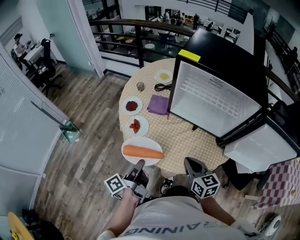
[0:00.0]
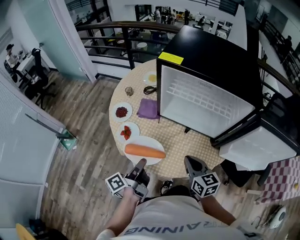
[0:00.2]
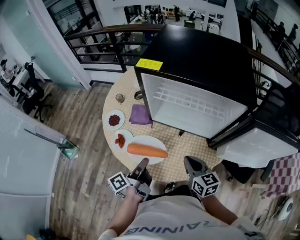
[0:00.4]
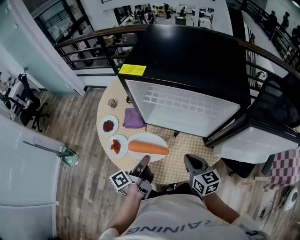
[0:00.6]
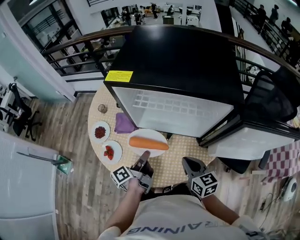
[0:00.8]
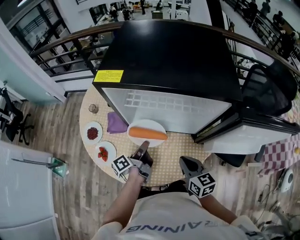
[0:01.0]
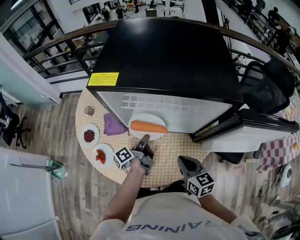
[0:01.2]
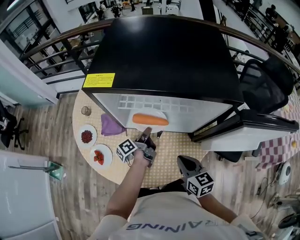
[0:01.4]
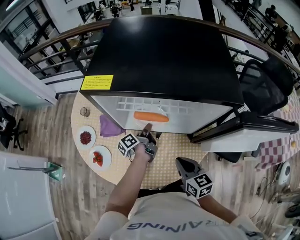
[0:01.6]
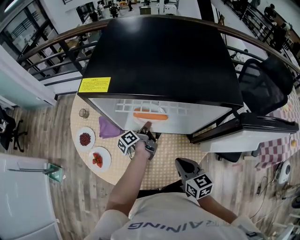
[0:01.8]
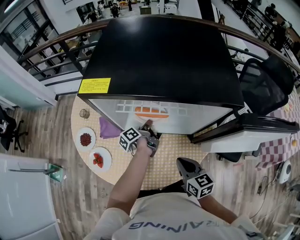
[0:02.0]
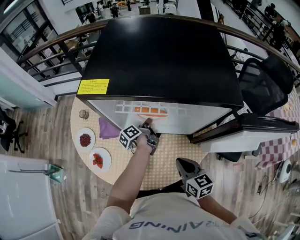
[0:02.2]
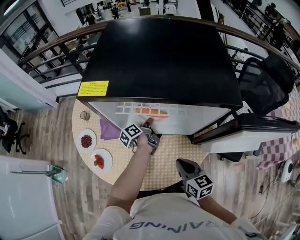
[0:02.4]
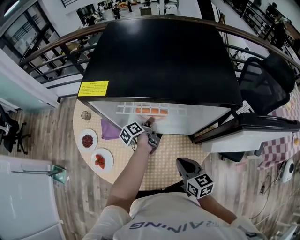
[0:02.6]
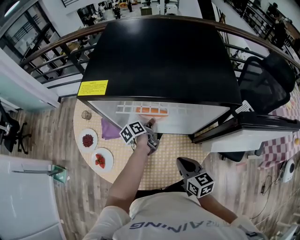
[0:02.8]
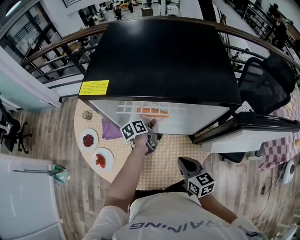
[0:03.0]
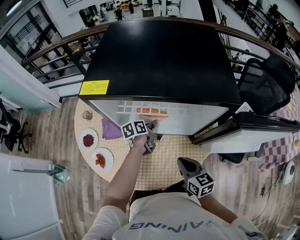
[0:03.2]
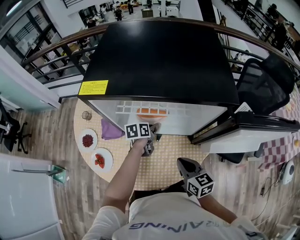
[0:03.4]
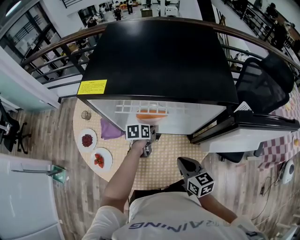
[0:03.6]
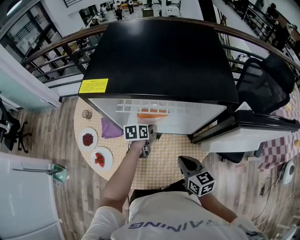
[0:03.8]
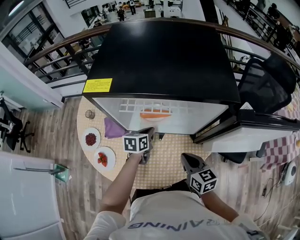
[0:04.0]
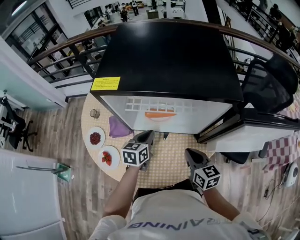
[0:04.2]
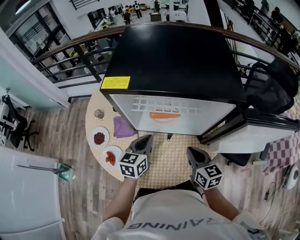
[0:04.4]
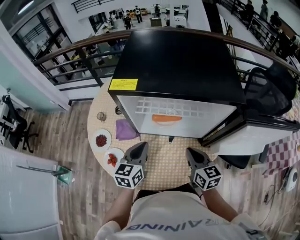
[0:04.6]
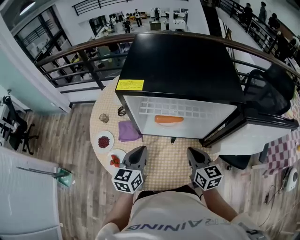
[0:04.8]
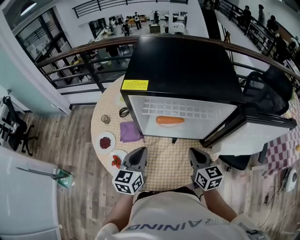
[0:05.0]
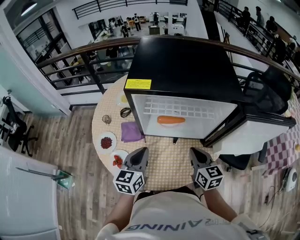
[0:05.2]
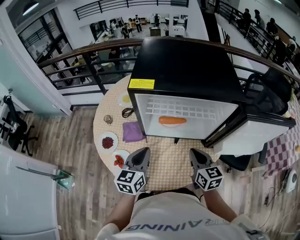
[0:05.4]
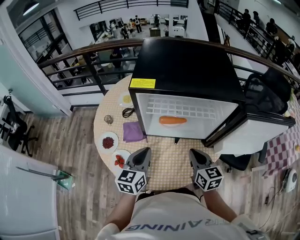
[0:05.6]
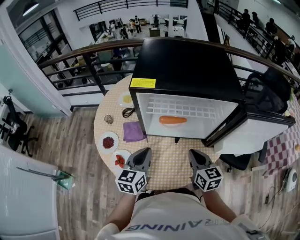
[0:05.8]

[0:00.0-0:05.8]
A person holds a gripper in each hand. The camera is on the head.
0:00.0 to 0:01.4: The right gripper changes place by about 15 cm.
0:02.8 to 0:04.4: The right gripper changes place by about 5 cm.
0:04.4 to 0:05.8: The right gripper moves approximately 5 cm.

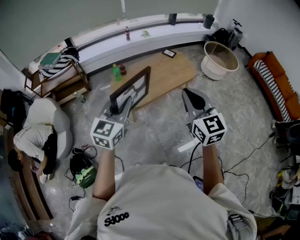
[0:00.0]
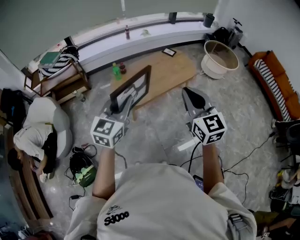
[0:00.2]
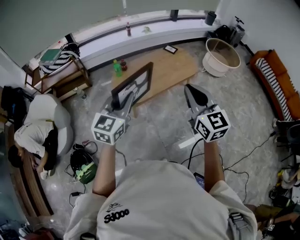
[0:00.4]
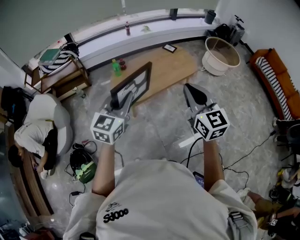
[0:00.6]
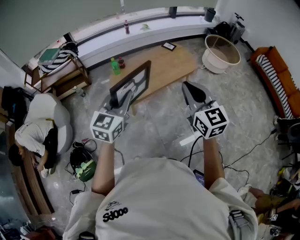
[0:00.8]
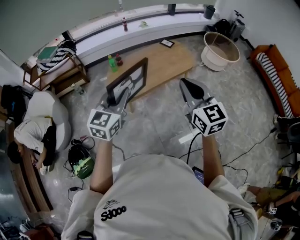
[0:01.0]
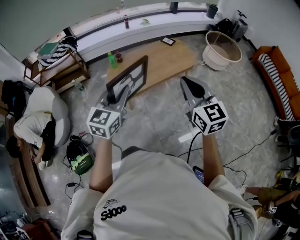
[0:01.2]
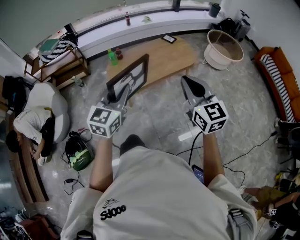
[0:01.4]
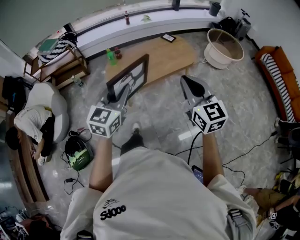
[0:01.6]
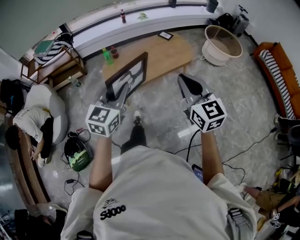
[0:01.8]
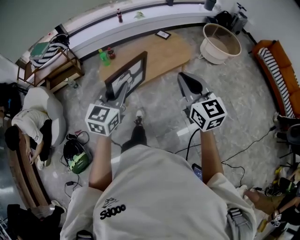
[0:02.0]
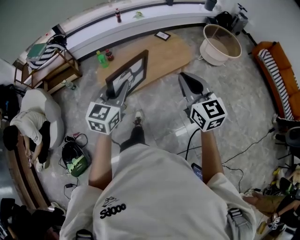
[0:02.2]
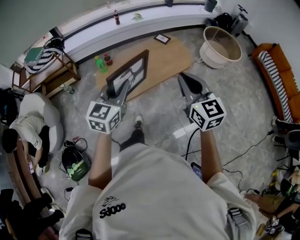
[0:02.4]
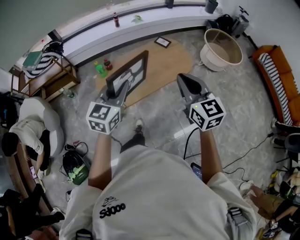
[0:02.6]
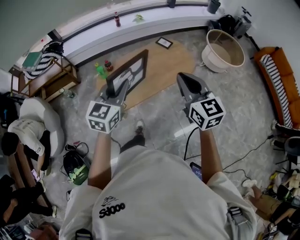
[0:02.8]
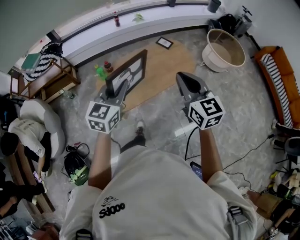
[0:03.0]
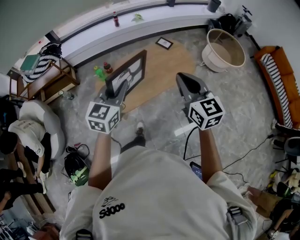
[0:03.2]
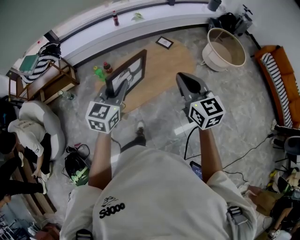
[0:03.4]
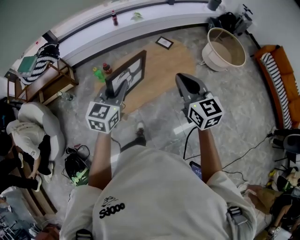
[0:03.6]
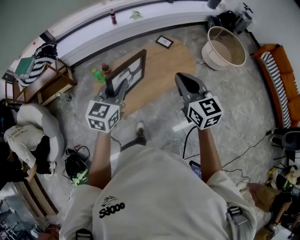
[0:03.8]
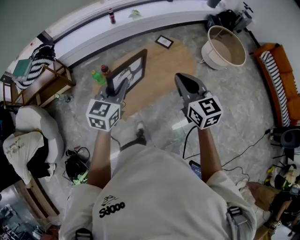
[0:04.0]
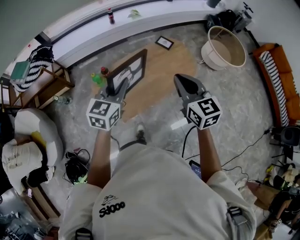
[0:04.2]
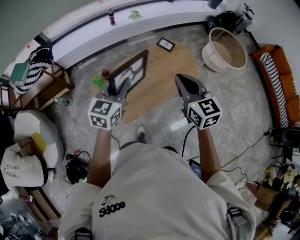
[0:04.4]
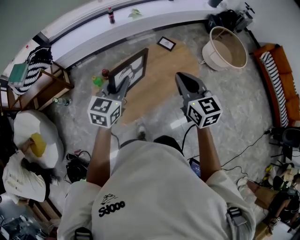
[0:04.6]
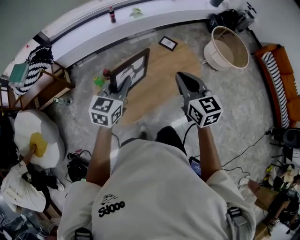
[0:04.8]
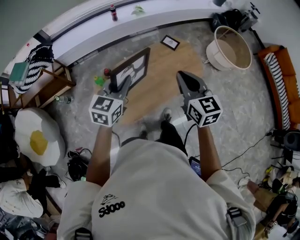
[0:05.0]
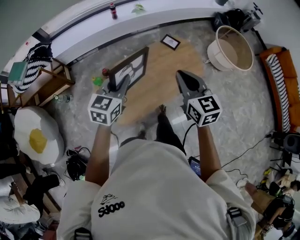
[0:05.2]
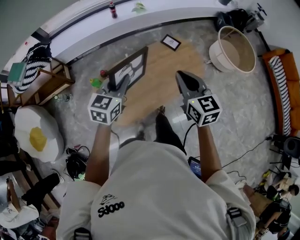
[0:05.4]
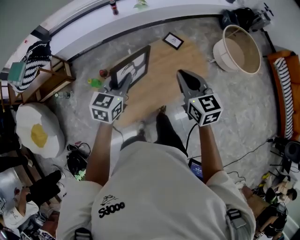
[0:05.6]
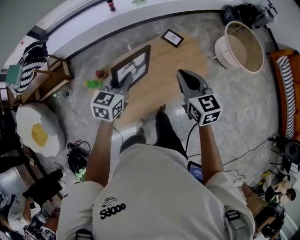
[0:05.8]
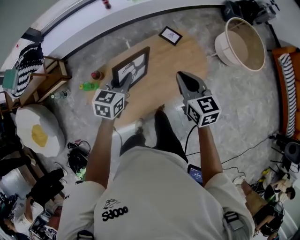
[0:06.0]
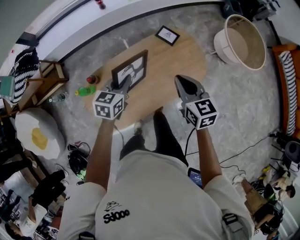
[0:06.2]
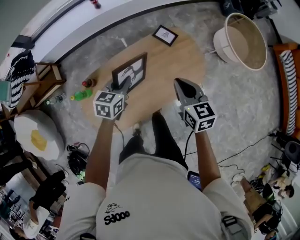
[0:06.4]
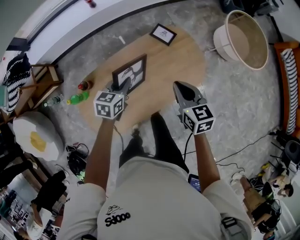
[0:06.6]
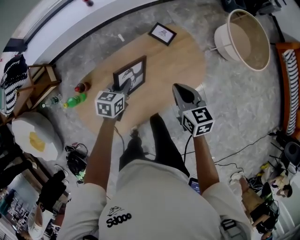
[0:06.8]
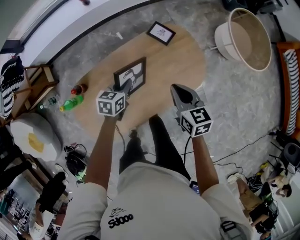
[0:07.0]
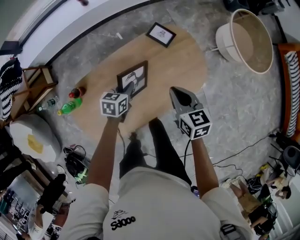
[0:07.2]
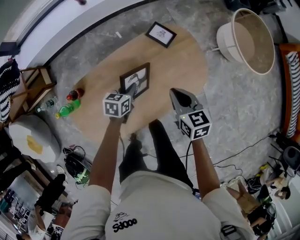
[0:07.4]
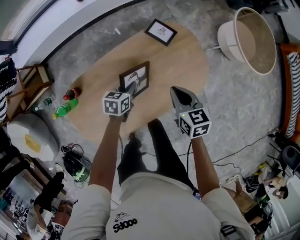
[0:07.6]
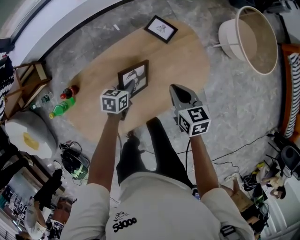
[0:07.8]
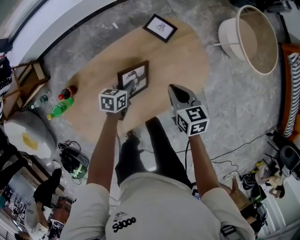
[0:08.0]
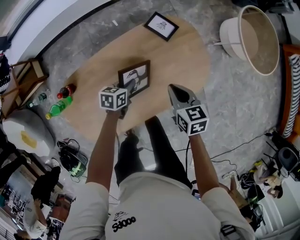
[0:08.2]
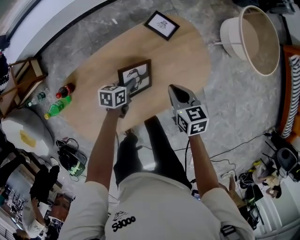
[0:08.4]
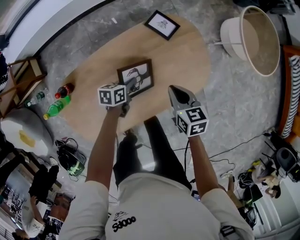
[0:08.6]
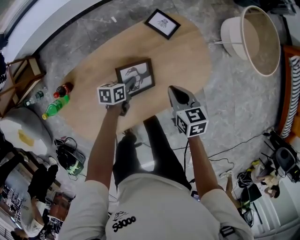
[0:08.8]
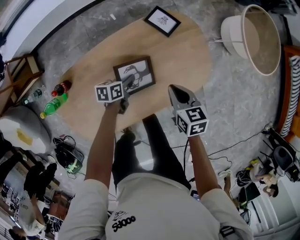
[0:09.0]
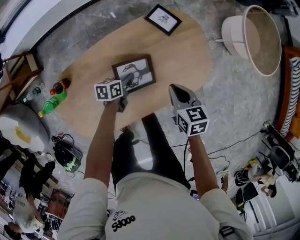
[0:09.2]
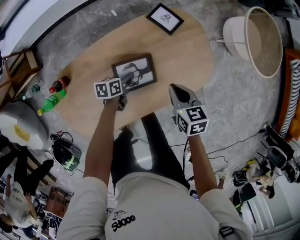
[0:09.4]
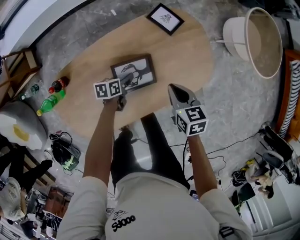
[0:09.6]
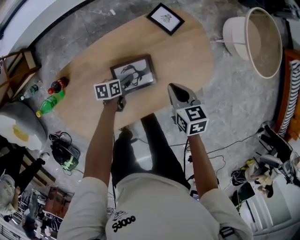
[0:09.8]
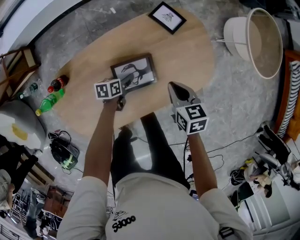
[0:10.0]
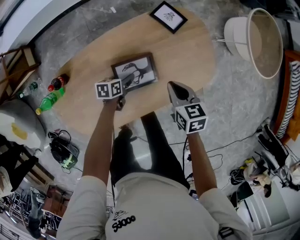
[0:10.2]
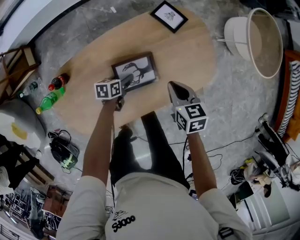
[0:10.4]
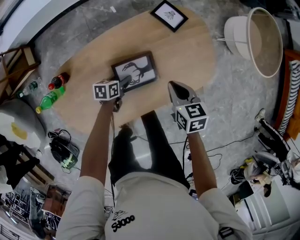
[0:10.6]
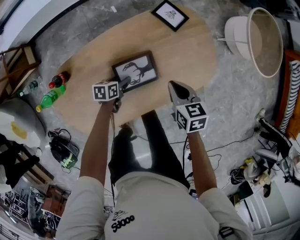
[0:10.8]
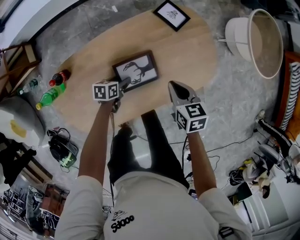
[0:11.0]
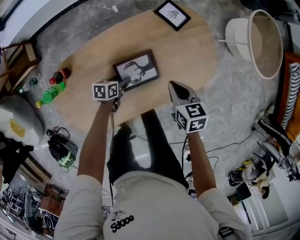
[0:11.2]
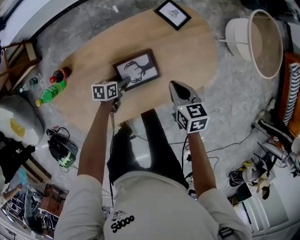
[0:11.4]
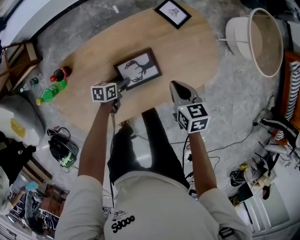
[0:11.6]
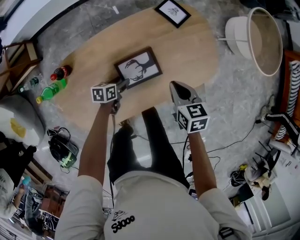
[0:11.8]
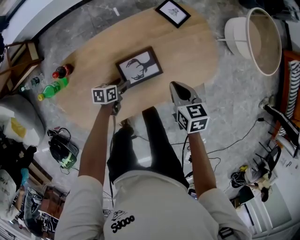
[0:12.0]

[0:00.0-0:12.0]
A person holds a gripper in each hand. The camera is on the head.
0:00.0 to 0:01.6: The grippers both shift to the right by approximately 10 cm.
0:01.6 to 0:03.0: Both grippers travel together forward, roughly 25 cm.
0:03.0 to 0:04.4: The grippers both shift forward by some 15 cm.
0:04.4 to 0:06.0: Both grippers move forward and downward, some 25 cm.
0:06.0 to 0:07.6: The right gripper is displaced downward and forward by about 25 cm. The left gripper moves downward, about 30 cm, and changes its angle by approximately 30 degrees.
0:07.6 to 0:09.0: The grippers both shift downward by about 5 cm. The left gripper swivels about 20 degrees.
0:09.0 to 0:10.4: The left gripper goes approximately 5 cm downward, and opens up.
0:10.4 to 0:12.0: The left gripper travels backward by some 5 cm.

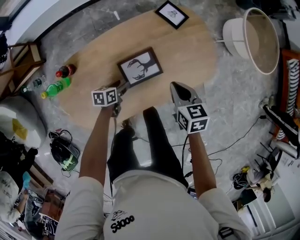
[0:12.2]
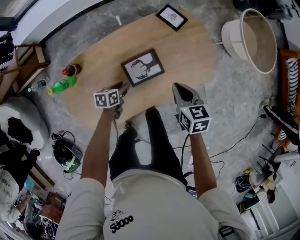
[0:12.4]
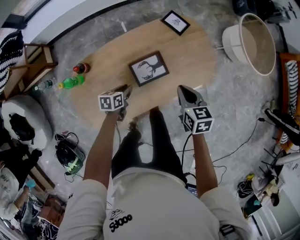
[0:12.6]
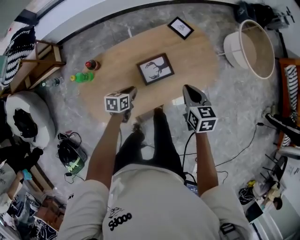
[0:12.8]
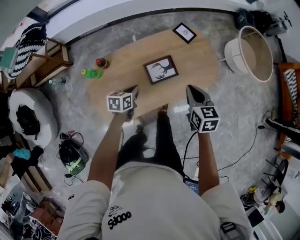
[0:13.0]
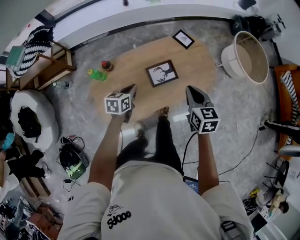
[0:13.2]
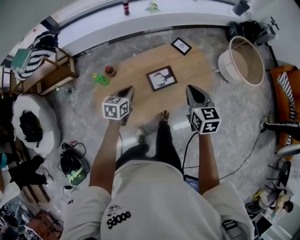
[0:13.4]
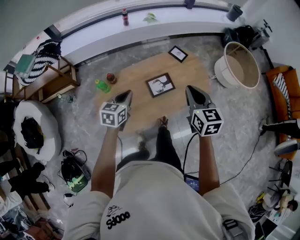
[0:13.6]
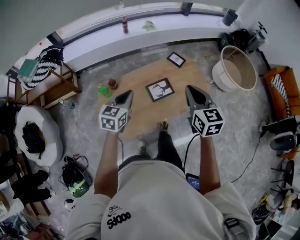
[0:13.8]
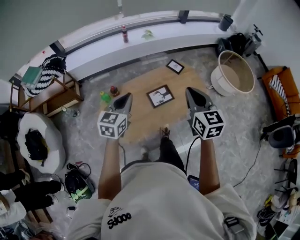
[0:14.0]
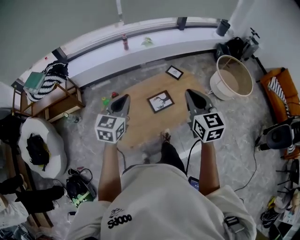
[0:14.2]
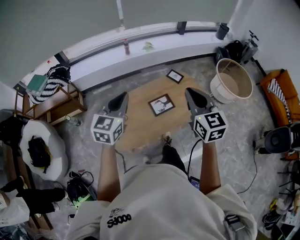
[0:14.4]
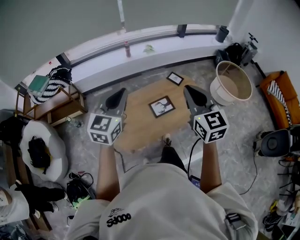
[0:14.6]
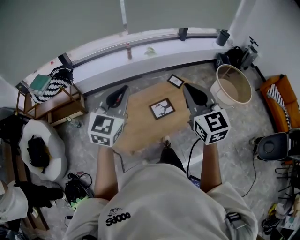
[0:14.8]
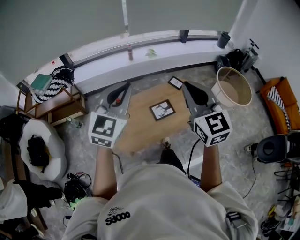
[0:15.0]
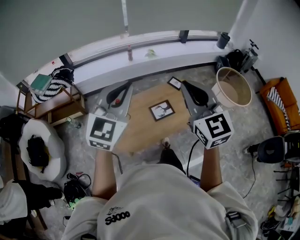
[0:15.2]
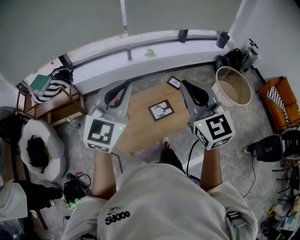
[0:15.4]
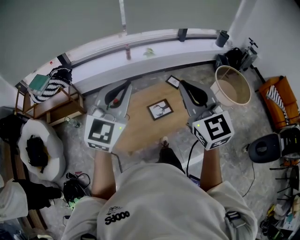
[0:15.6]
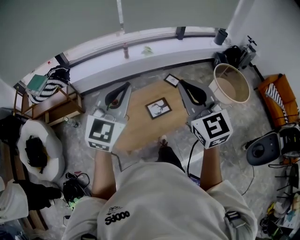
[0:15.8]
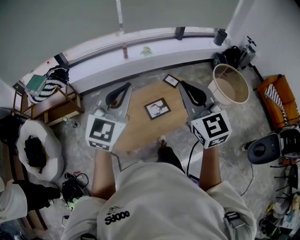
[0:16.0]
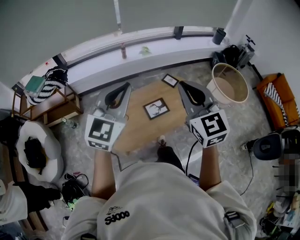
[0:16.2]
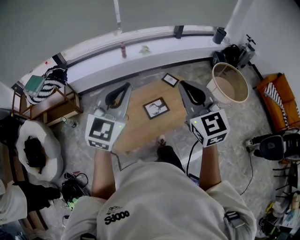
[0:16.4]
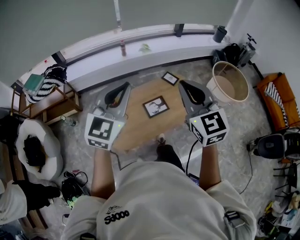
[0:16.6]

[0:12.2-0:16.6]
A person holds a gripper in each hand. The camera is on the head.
0:12.2 to 0:13.6: The left gripper shifts roughly 40 cm upward, swivels approximately 40 degrees, and closes; the right gripper travels upward and backward by some 35 cm, and rotates roughly 30 degrees.
0:13.6 to 0:15.2: Both grippers move upward, about 30 cm. The right gripper changes its angle by about 30 degrees. The left gripper changes its angle by roughly 50 degrees.
0:15.2 to 0:16.6: The right gripper ends up some 5 cm from where it was. Meanwhile the left gripper changes place by roughly 5 cm.

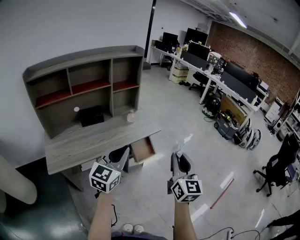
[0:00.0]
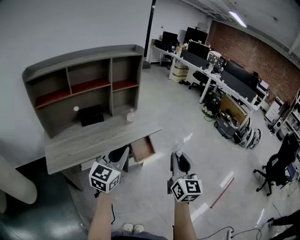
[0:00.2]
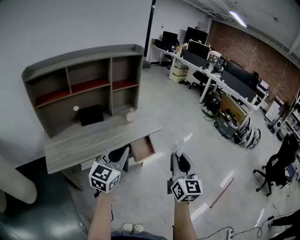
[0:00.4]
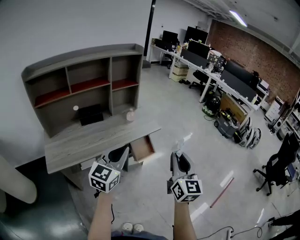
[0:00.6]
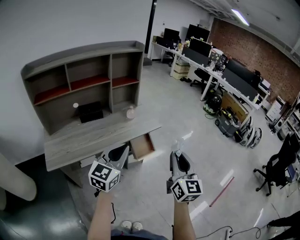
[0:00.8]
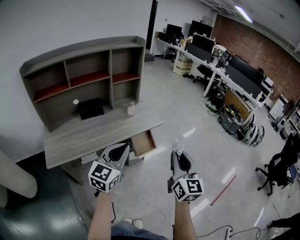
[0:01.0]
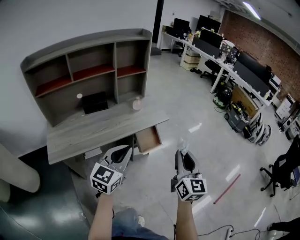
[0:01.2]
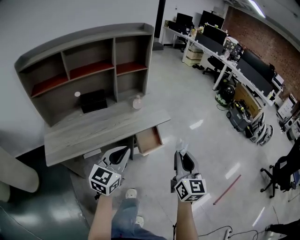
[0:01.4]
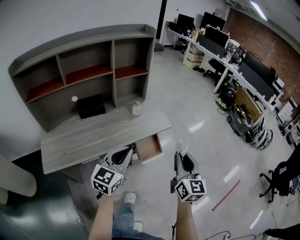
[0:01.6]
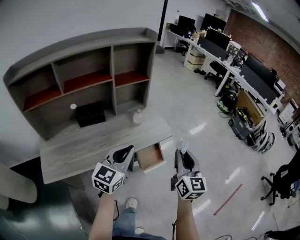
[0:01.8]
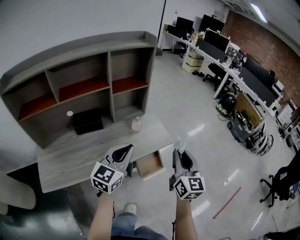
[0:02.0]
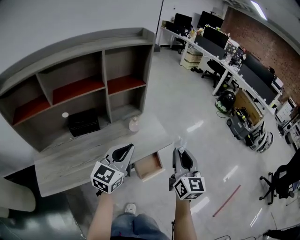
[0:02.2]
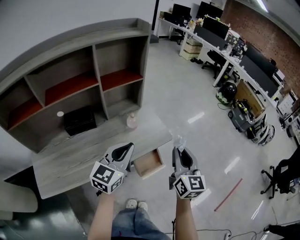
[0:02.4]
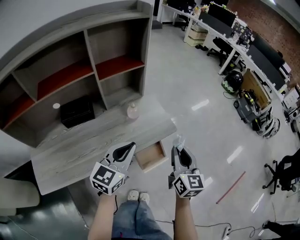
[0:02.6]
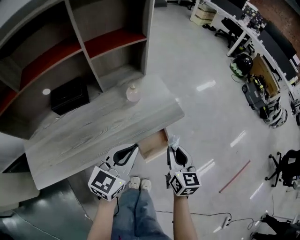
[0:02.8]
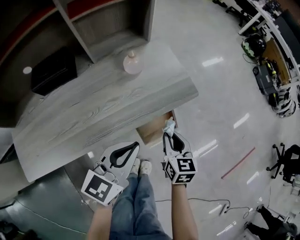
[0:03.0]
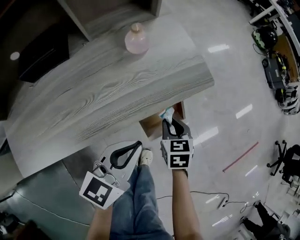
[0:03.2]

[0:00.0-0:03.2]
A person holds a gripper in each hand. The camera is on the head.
0:00.0 to 0:01.6: Both grippers move forward and downward, roughly 15 cm.
0:01.6 to 0:03.2: The left gripper heads downward and forward, covering about 30 cm, and rotates roughly 20 degrees, while the right gripper is displaced downward and forward by about 50 cm, and angles its fingers downward, by some 50 degrees.
